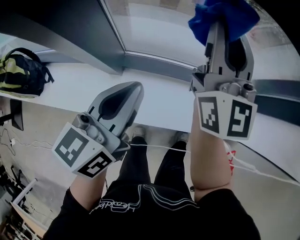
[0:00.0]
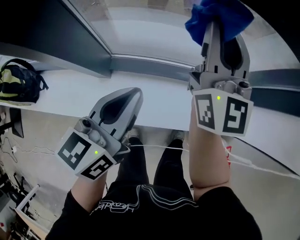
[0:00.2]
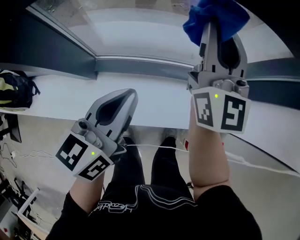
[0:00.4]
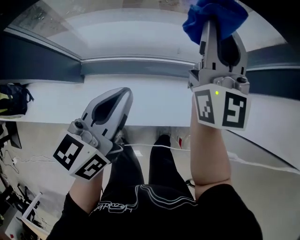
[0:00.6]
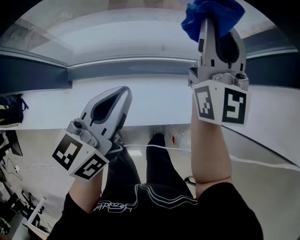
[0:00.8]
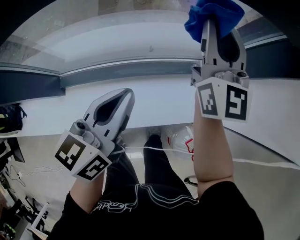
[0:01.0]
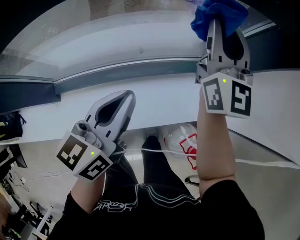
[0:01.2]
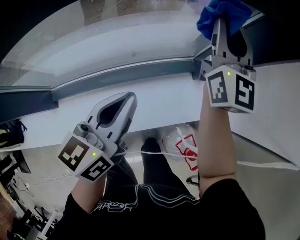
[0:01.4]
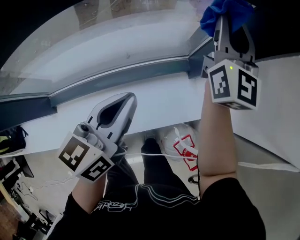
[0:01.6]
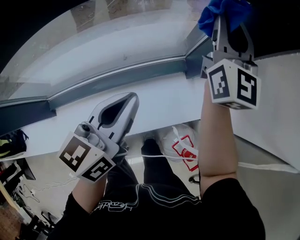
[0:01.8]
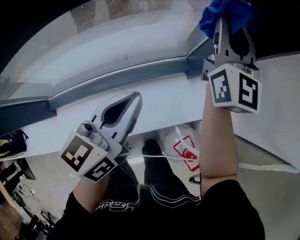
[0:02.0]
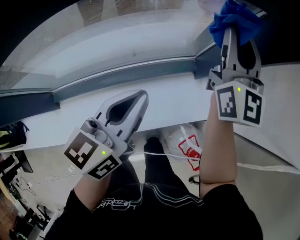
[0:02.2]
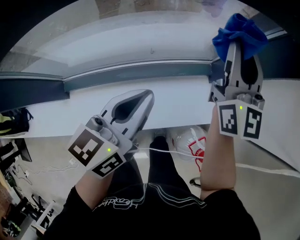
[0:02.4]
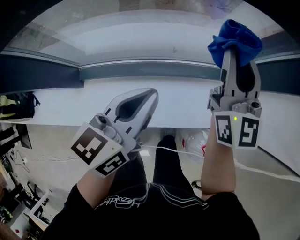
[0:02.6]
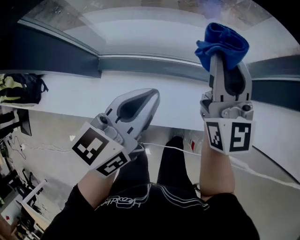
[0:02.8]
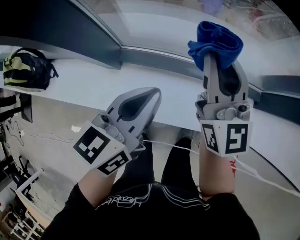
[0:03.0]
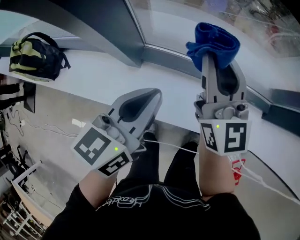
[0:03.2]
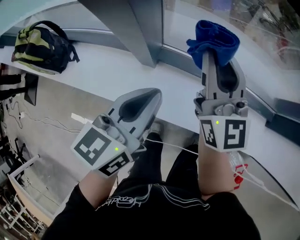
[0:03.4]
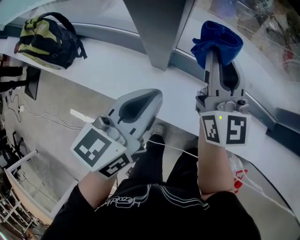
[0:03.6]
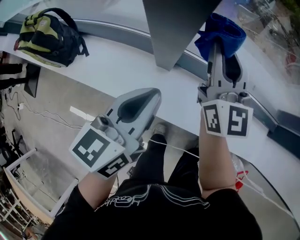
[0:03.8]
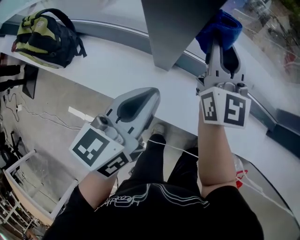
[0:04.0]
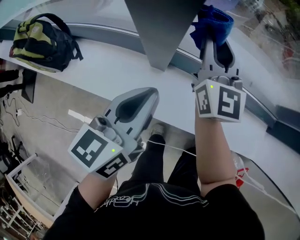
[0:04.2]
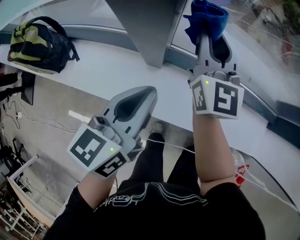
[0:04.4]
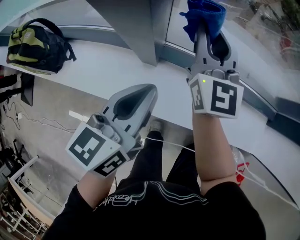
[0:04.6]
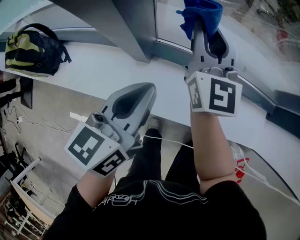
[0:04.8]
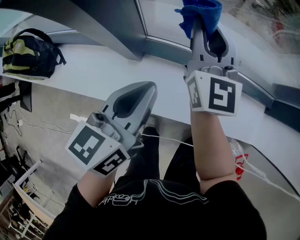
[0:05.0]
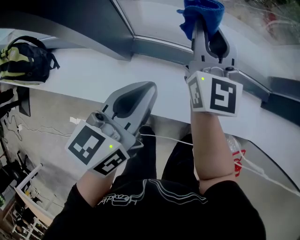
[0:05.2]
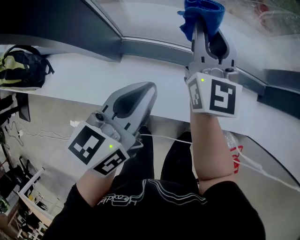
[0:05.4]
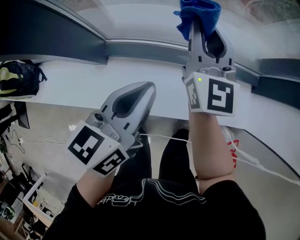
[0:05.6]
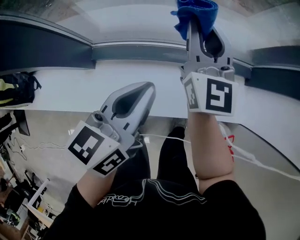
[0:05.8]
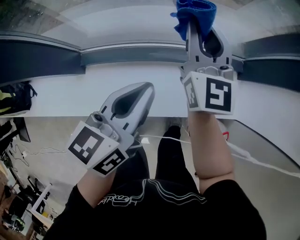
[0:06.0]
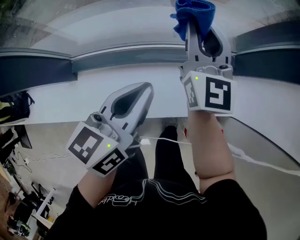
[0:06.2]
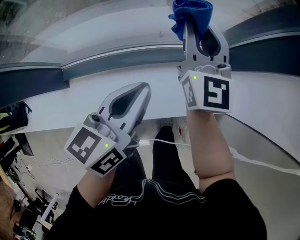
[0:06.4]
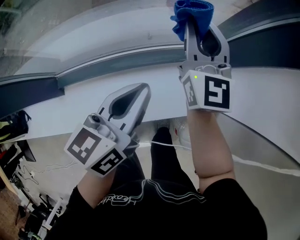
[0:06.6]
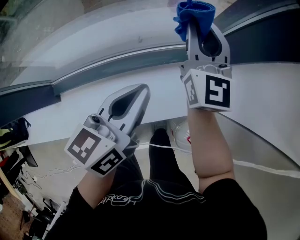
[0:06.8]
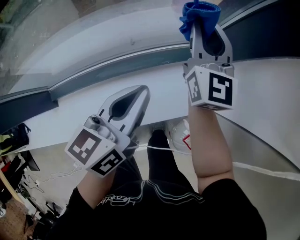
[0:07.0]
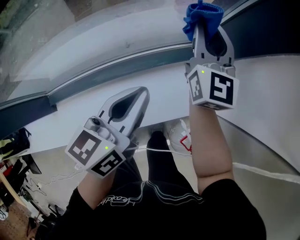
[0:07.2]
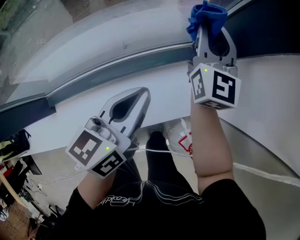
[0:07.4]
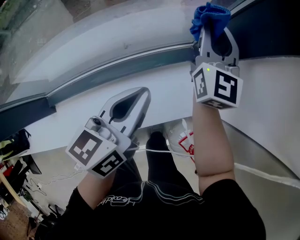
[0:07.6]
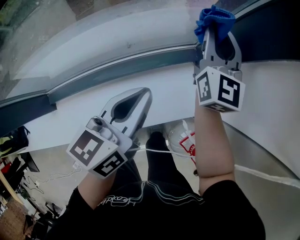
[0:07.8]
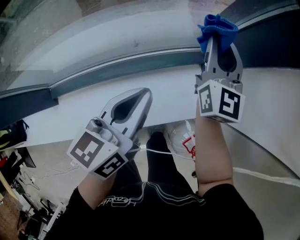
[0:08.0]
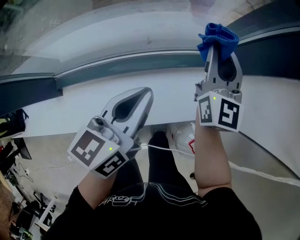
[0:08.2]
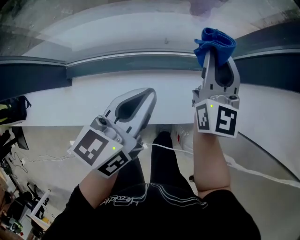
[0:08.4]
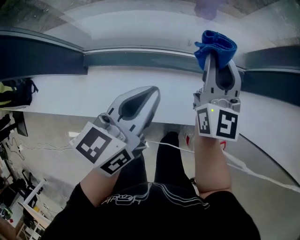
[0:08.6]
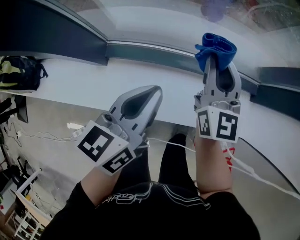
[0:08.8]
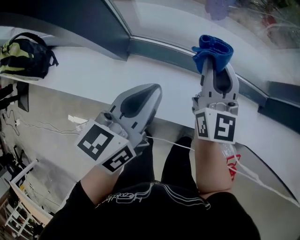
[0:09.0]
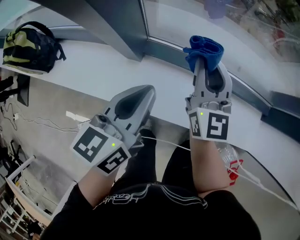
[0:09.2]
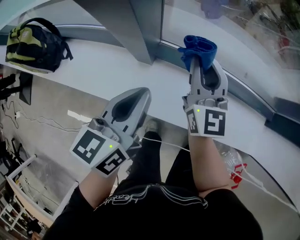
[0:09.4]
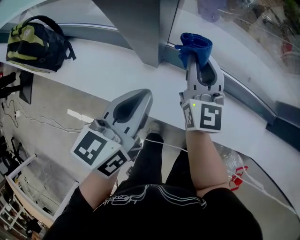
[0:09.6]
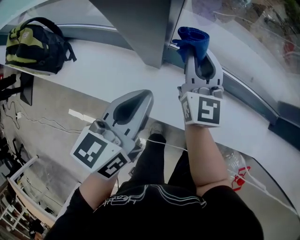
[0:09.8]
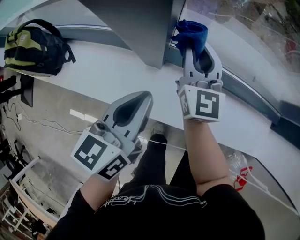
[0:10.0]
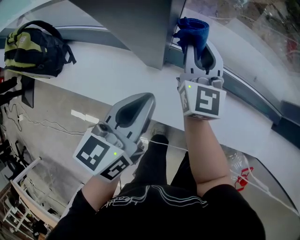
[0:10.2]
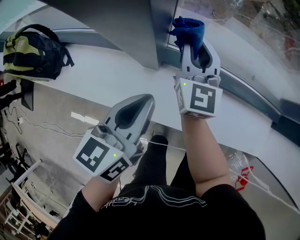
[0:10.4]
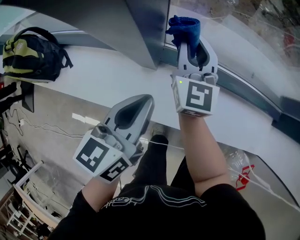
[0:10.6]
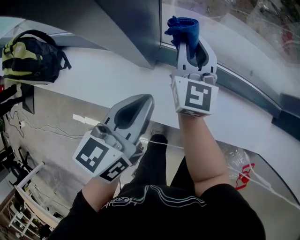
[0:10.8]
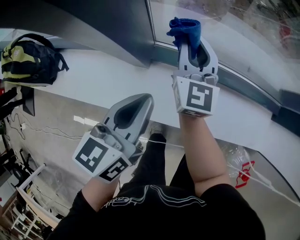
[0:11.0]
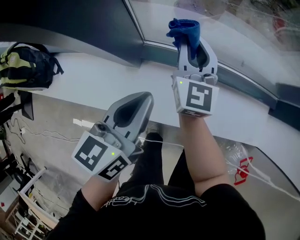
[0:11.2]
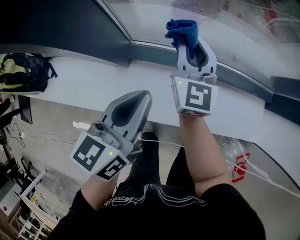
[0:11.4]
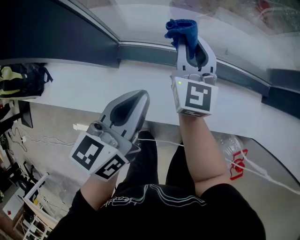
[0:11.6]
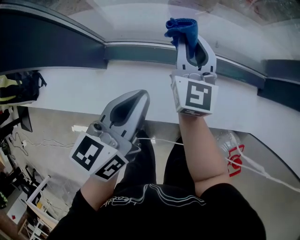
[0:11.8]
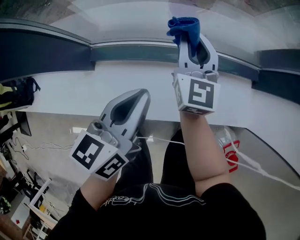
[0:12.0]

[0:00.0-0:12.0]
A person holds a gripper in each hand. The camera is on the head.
0:00.0 to 0:01.6: Both grippers are carried to the right, approximately 50 cm. The right gripper turns by approximately 30 degrees, while the left gripper swivels roughly 20 degrees.
0:01.6 to 0:03.0: The right gripper shifts by roughly 50 cm, and swivels approximately 40 degrees. Meanwhile the left gripper changes place by approximately 35 cm.
0:03.0 to 0:04.4: Both grippers move to the left, roughly 25 cm.
0:04.4 to 0:06.0: Both grippers travel together to the right, some 40 cm.
0:06.0 to 0:07.6: Both grippers travel together to the right and forward, roughly 35 cm. The right gripper rotates approximately 20 degrees.
0:07.6 to 0:09.0: The pair of grippers is taken roughly 50 cm. The left gripper changes its angle by approximately 30 degrees; the right gripper swivels approximately 30 degrees.
0:09.0 to 0:10.4: Both grippers move to the left, some 20 cm.
0:10.4 to 0:12.0: Both grippers travel together to the right, some 30 cm.

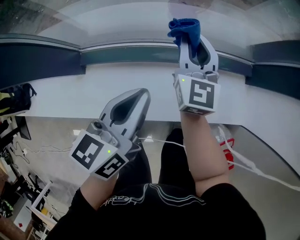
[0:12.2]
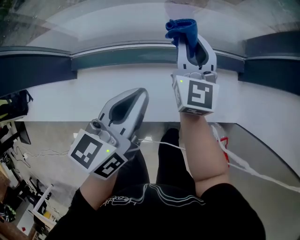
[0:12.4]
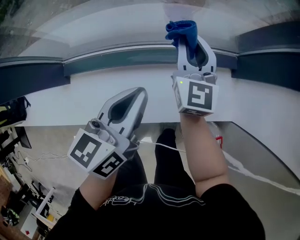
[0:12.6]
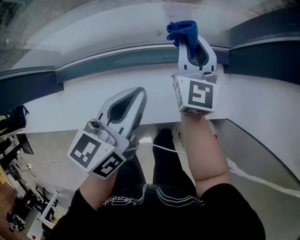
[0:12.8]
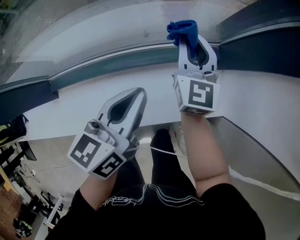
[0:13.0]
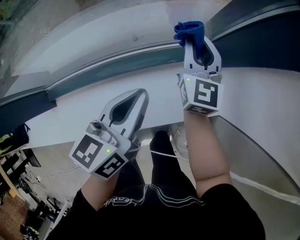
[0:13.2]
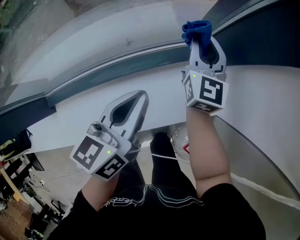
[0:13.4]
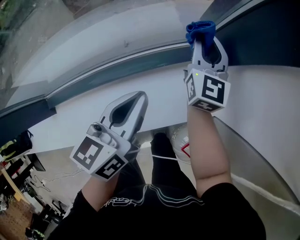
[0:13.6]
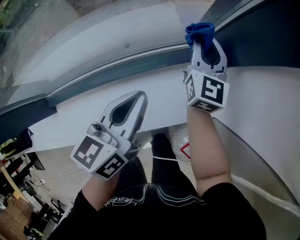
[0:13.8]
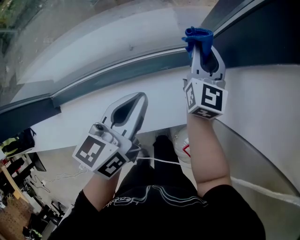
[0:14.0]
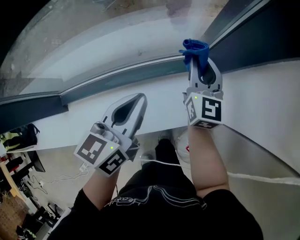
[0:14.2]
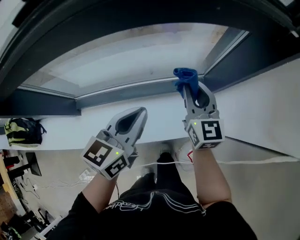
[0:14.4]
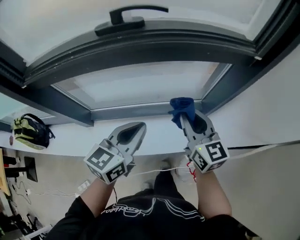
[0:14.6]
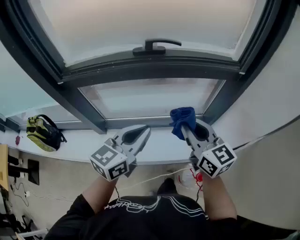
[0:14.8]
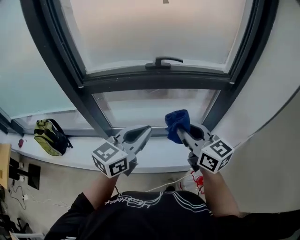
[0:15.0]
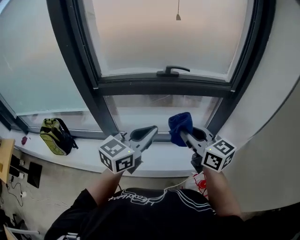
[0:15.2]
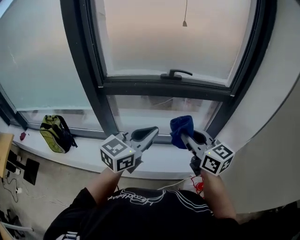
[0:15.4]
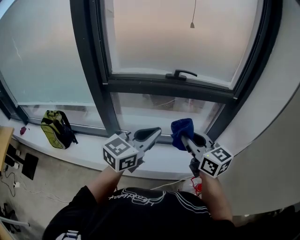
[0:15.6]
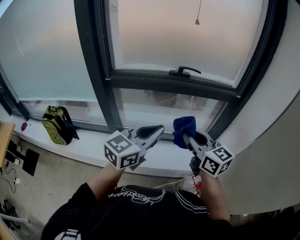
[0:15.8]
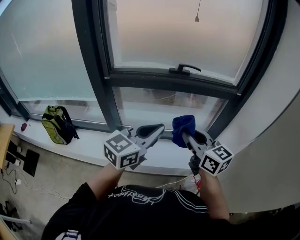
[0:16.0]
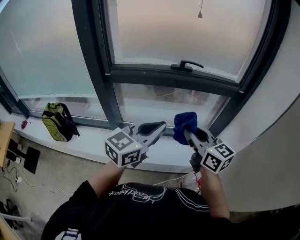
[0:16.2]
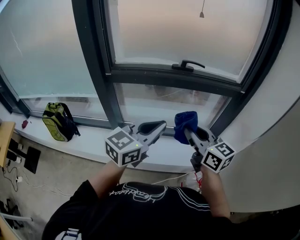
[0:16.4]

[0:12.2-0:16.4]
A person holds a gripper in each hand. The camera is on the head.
0:12.2 to 0:13.6: The two grippers go roughly 35 cm to the right and forward. The right gripper rotates about 20 degrees.
0:13.6 to 0:15.0: Both grippers move upward, approximately 50 cm. The right gripper changes its angle by about 50 degrees; the left gripper changes its angle by roughly 30 degrees.
0:15.0 to 0:16.4: The right gripper goes some 5 cm to the left. The left gripper ends up some 5 cm from where it was.

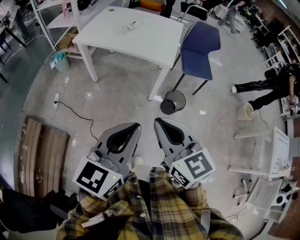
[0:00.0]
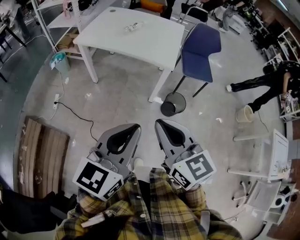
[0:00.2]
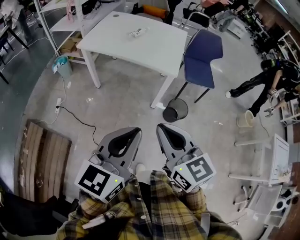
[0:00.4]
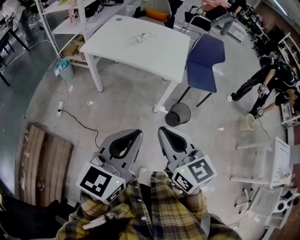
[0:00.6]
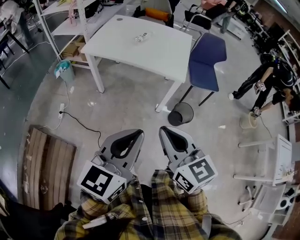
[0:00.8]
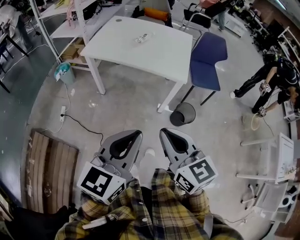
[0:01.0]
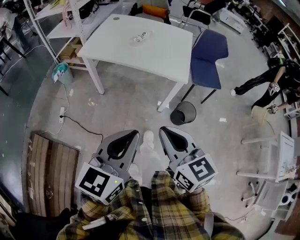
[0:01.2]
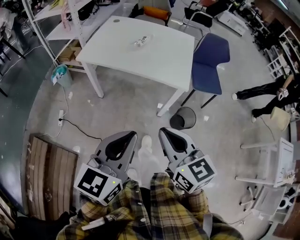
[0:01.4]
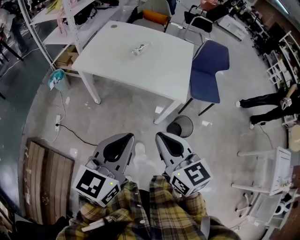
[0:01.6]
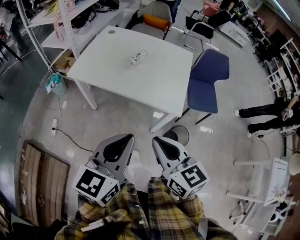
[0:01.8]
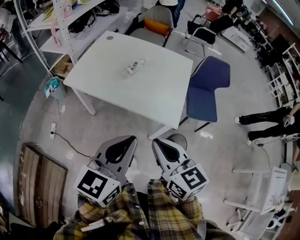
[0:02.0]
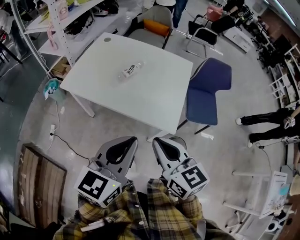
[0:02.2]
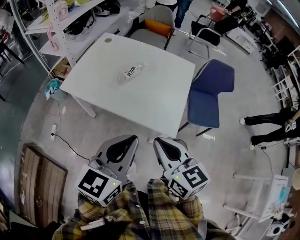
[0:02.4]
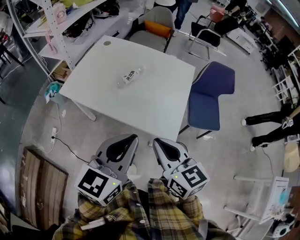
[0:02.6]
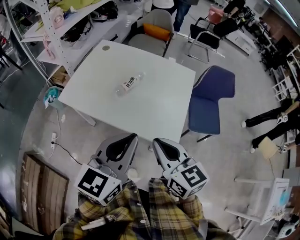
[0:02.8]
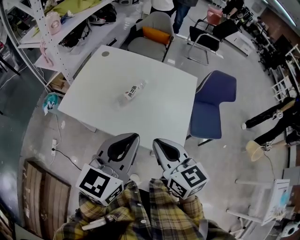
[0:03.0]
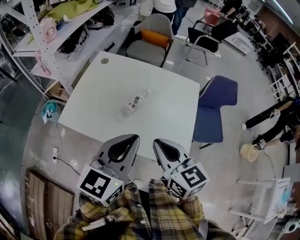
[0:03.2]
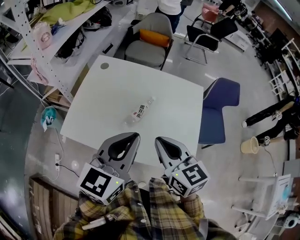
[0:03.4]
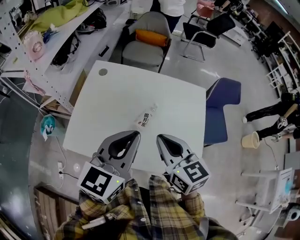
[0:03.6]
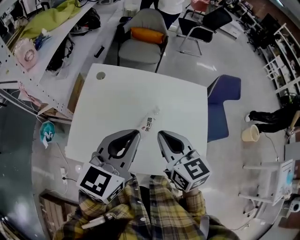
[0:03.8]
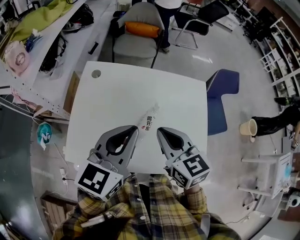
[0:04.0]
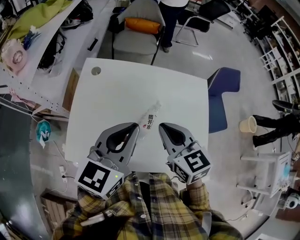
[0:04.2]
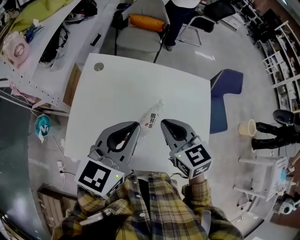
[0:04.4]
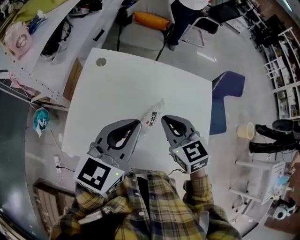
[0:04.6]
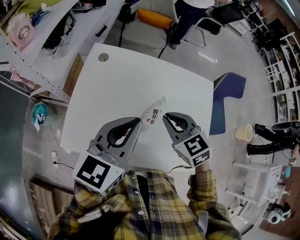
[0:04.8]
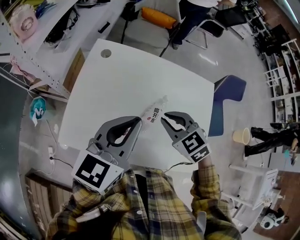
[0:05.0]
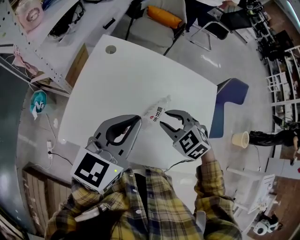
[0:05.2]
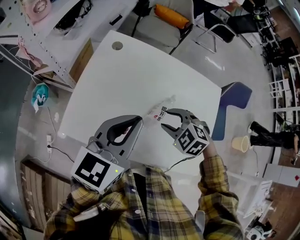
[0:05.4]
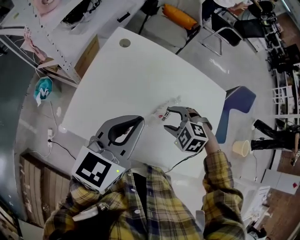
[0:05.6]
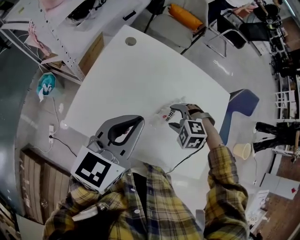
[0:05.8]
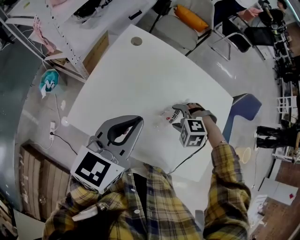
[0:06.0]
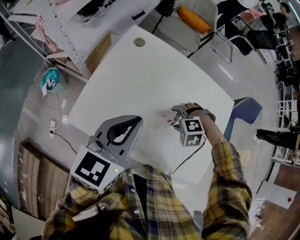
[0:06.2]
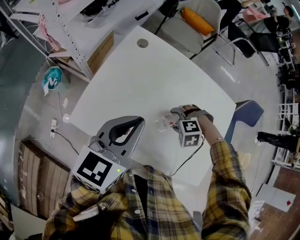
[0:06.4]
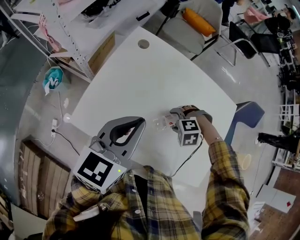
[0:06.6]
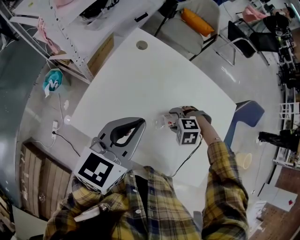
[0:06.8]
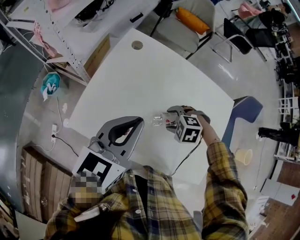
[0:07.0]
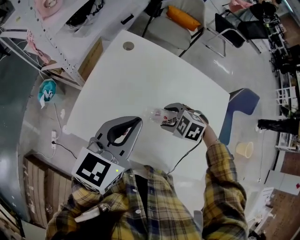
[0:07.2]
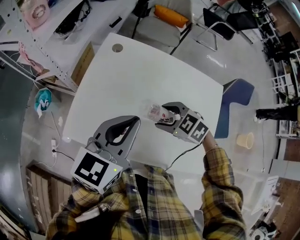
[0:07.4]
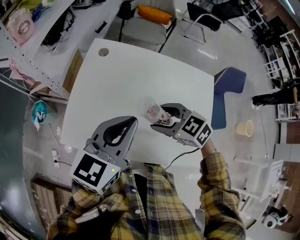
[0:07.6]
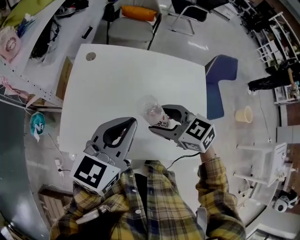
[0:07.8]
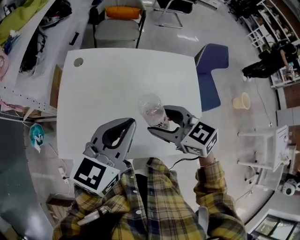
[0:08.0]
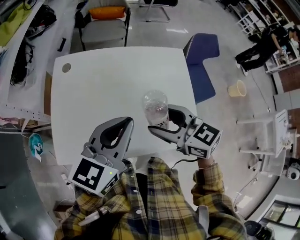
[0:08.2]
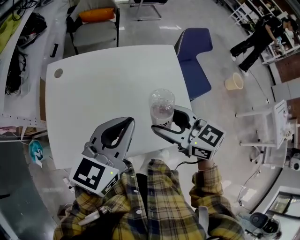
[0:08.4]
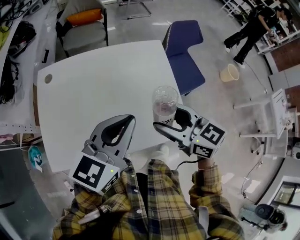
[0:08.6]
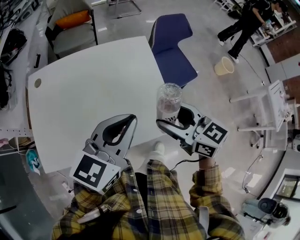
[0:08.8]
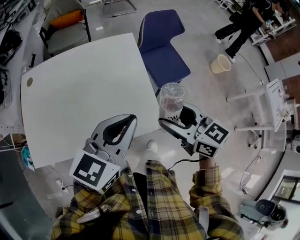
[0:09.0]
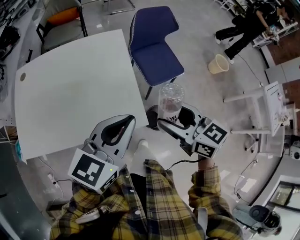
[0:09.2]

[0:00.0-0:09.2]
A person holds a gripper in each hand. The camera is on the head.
0:00.0 to 0:01.6: The right gripper shifts approximately 20 cm forward, while the left gripper moves forward and to the left, some 25 cm.
0:01.6 to 0:03.0: The two grippers go some 30 cm forward.
0:03.0 to 0:04.6: The two grippers go approximately 30 cm forward and to the left. The right gripper turns by about 20 degrees.
0:04.6 to 0:06.2: The left gripper changes place by approximately 10 cm, while the right gripper goes some 20 cm downward, angles its fingers downward, by about 50 degrees, and opens.
0:06.2 to 0:07.6: The left gripper moves some 5 cm; the right gripper is displaced upward by roughly 10 cm, and tips its fingers upward by roughly 40 degrees.
0:07.6 to 0:09.2: The two grippers travel together, some 50 cm. The left gripper turns by approximately 30 degrees. The right gripper turns by roughly 50 degrees.
